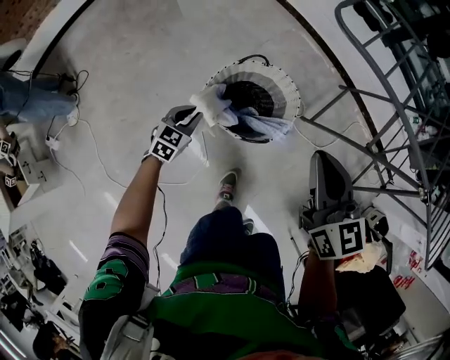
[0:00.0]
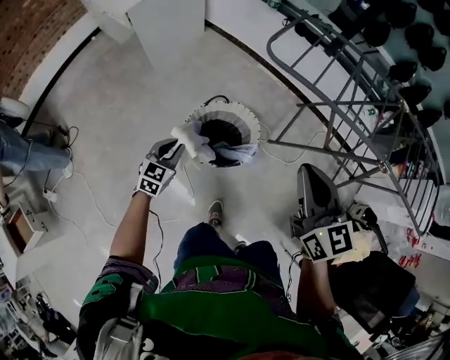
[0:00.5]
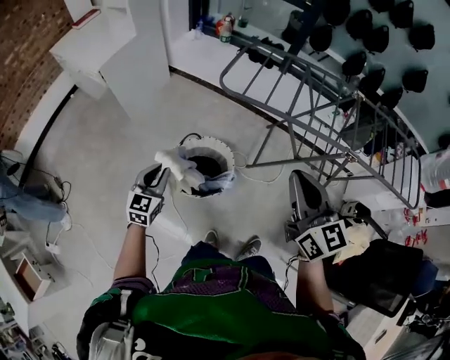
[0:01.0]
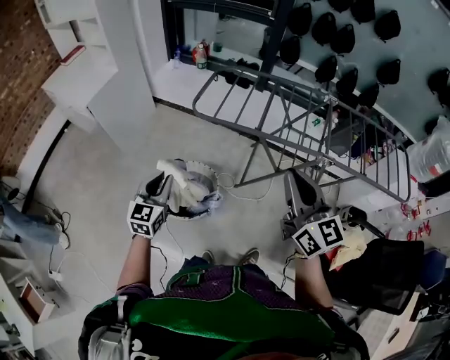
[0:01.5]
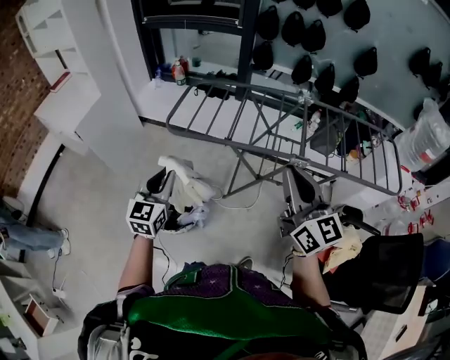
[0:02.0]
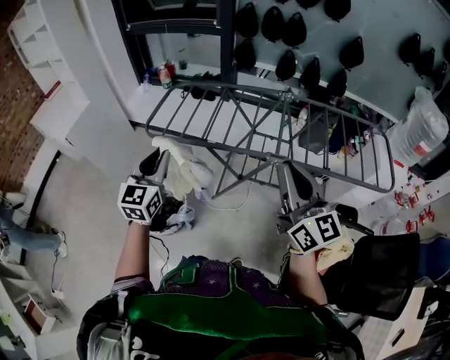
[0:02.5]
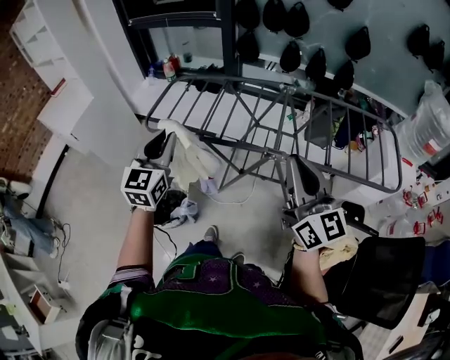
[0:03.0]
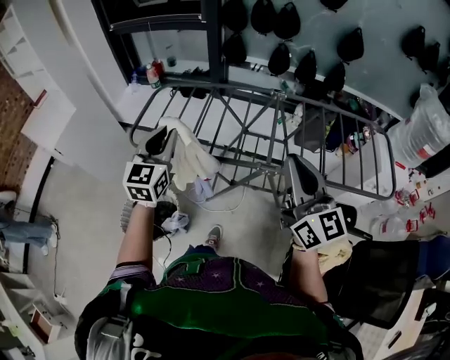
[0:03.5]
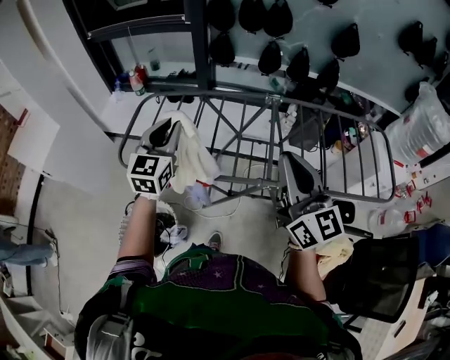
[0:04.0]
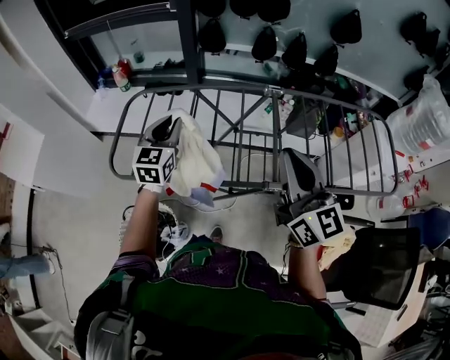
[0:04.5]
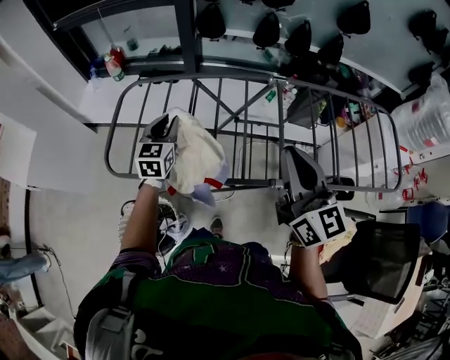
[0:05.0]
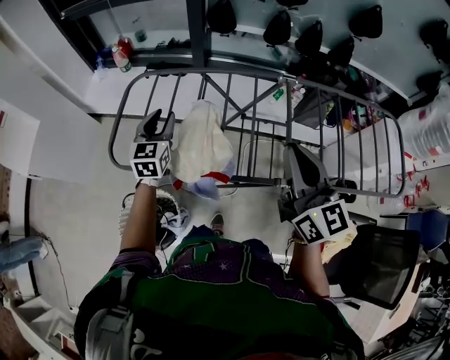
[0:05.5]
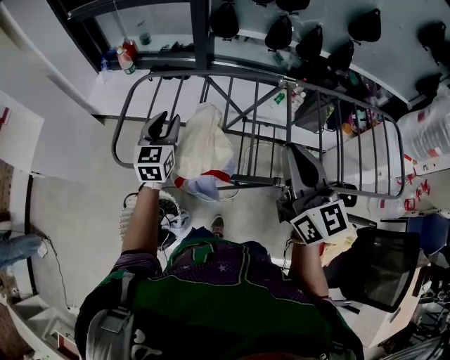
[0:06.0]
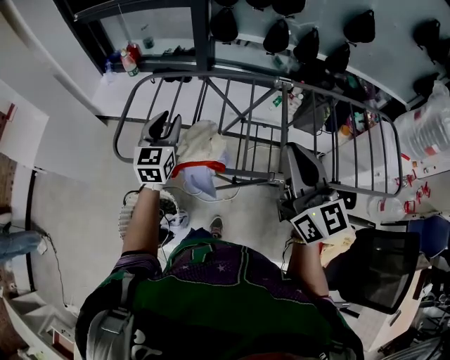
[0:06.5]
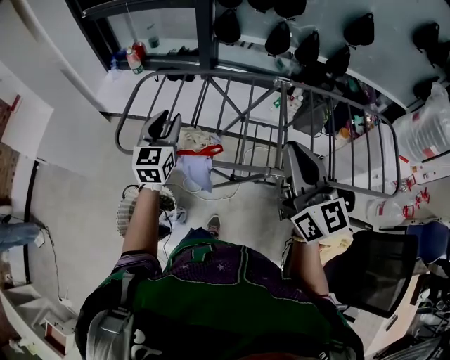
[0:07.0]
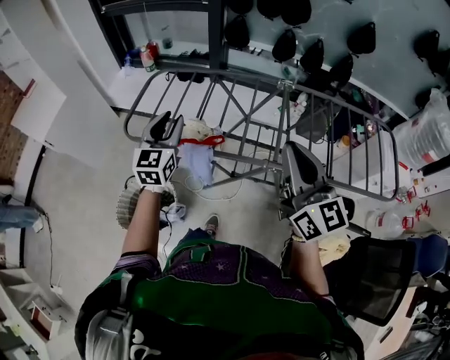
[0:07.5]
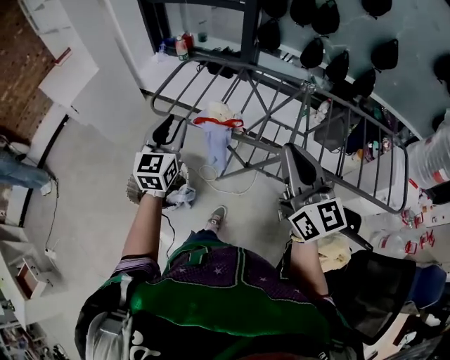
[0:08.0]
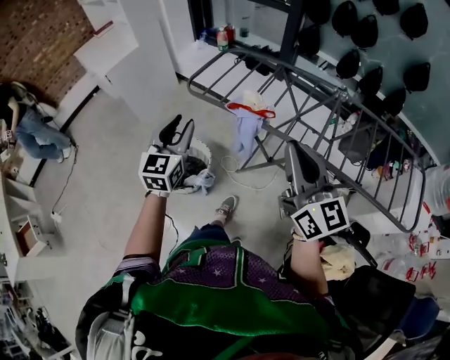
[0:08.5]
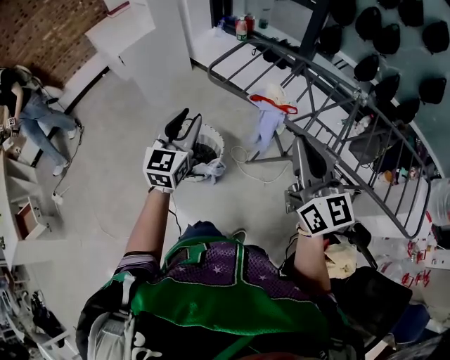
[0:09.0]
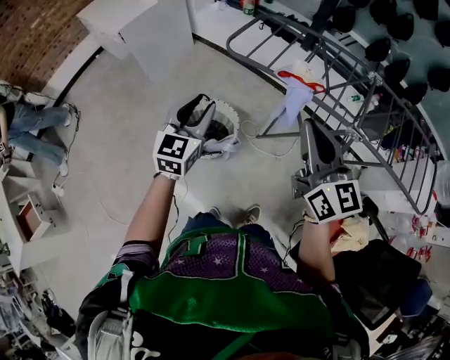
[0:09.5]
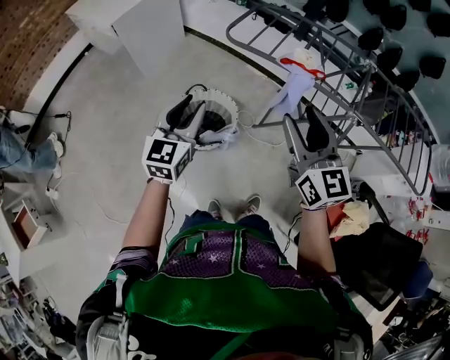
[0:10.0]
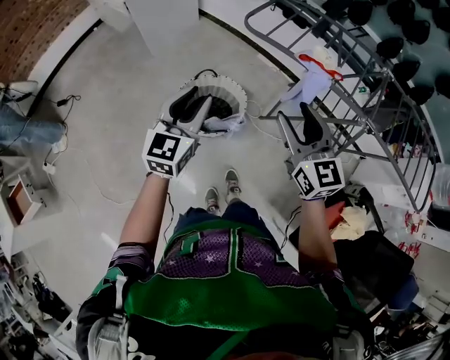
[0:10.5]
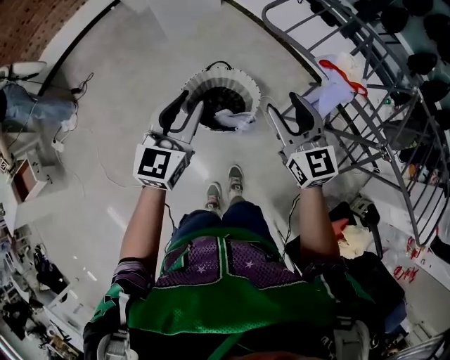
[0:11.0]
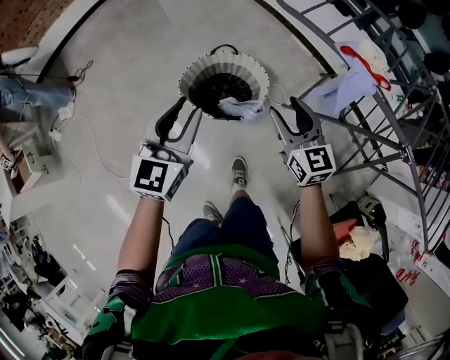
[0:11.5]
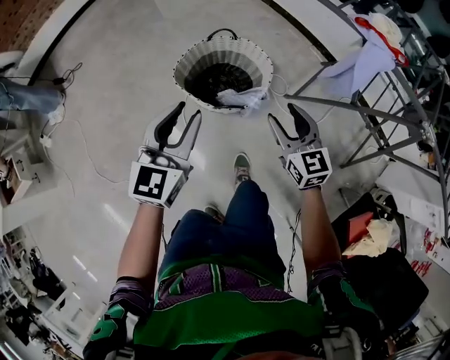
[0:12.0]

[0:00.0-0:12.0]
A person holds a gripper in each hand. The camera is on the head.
0:00.0 to 0:02.0: The right gripper is displaced to the right and upward by about 50 cm, and changes its angle by some 40 degrees; the left gripper goes about 60 cm upward and to the right, and points its fingers approximately 30 degrees further upward.
0:02.0 to 0:04.0: The left gripper goes about 35 cm forward and to the right. The right gripper moves forward and to the right, some 25 cm.
0:04.0 to 0:06.0: The right gripper is displaced forward, downward and to the left by about 10 cm, while the left gripper goes some 20 cm downward, forward and to the left.
0:06.0 to 0:08.0: The right gripper shifts about 20 cm backward; the left gripper travels backward by roughly 30 cm.
0:08.0 to 0:10.0: The right gripper travels to the left by about 30 cm, and opens up; the left gripper heads to the left and backward, covering about 30 cm.
0:10.0 to 0:12.0: The right gripper moves downward, some 40 cm, and swivels approximately 20 degrees, while the left gripper is displaced downward by some 20 cm.

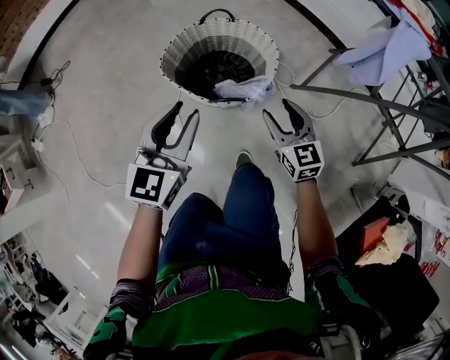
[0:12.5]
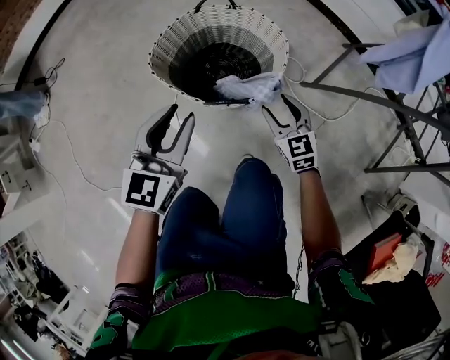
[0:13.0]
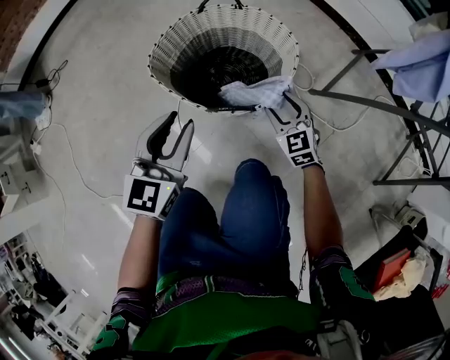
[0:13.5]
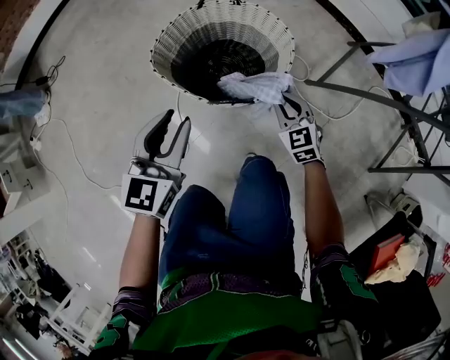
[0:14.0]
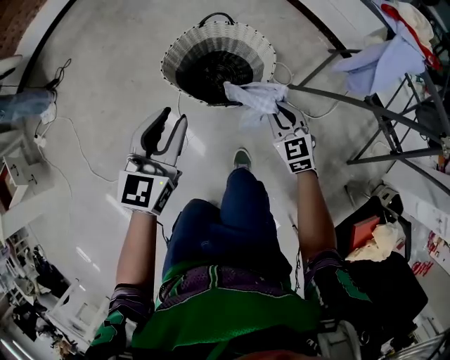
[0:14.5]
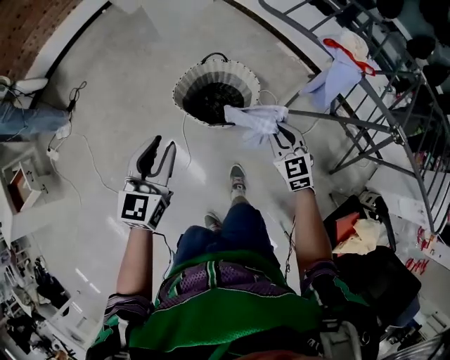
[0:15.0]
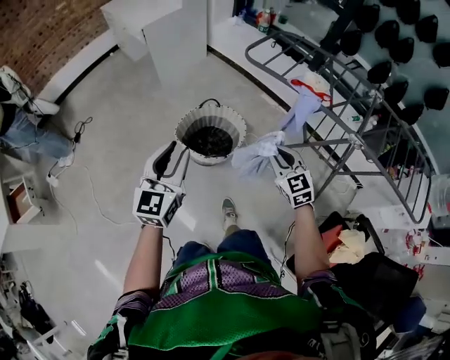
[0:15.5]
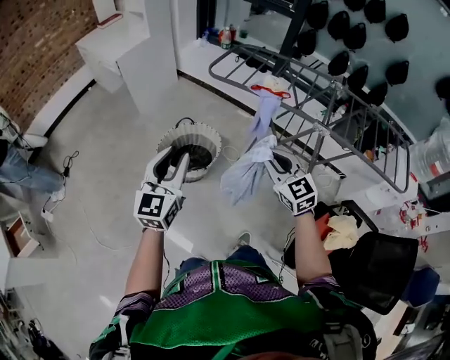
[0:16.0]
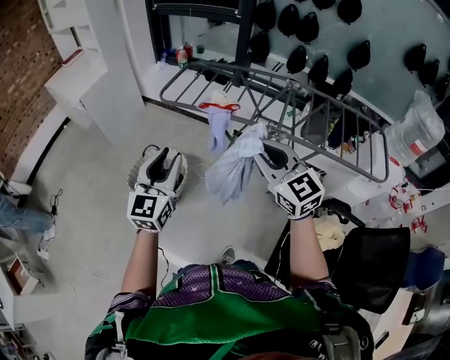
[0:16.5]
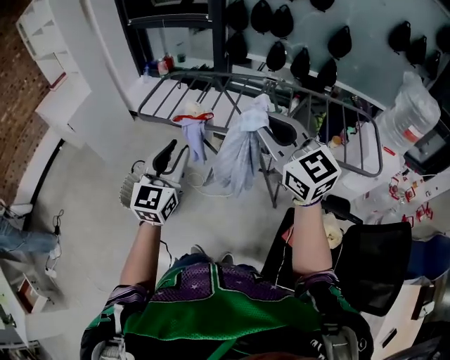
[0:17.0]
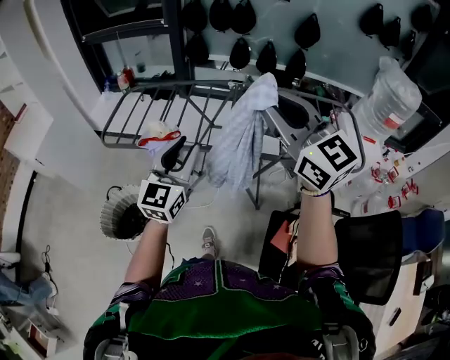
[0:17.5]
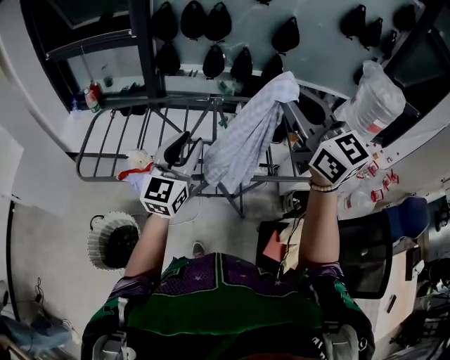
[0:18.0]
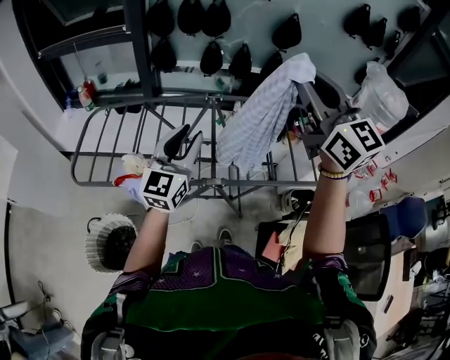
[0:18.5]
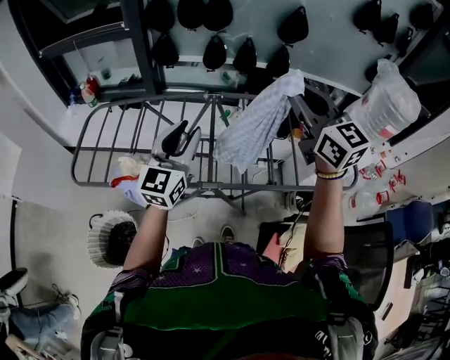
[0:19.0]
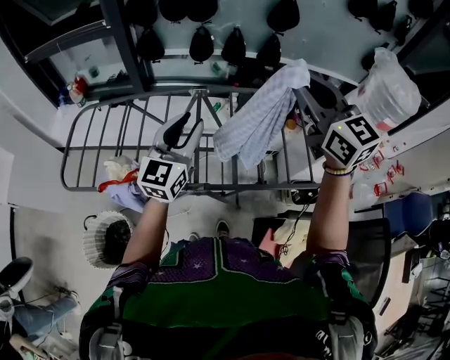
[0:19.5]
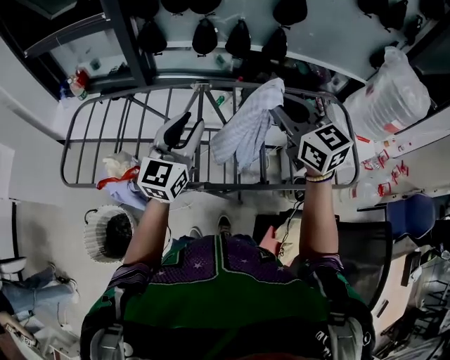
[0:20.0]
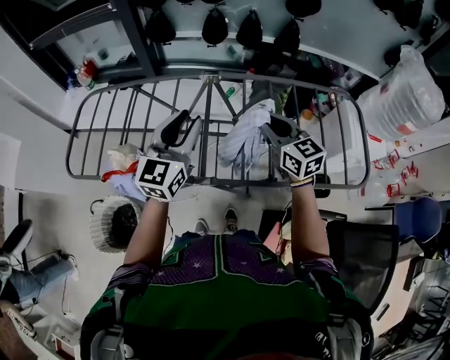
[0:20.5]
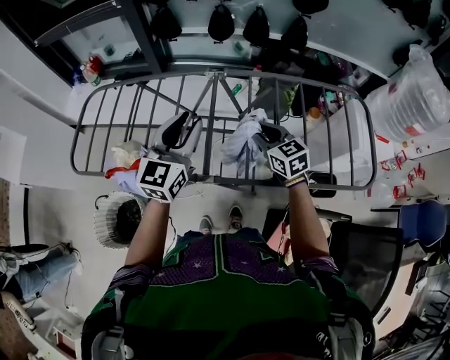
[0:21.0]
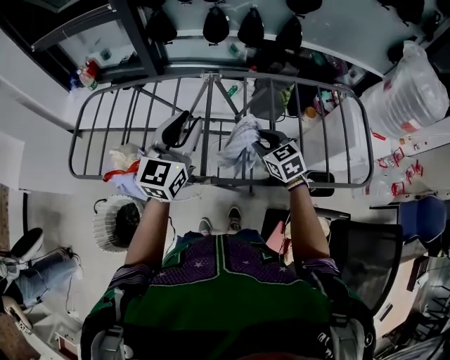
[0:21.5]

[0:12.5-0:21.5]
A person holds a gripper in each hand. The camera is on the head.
0:12.5 to 0:14.5: The right gripper goes downward and returns, approximately 20 cm each way, and closes its fingers, while the left gripper travels downward and back again, about 15 cm each way.
0:14.5 to 0:17.0: Both grippers are carried to the right and backward, approximately 40 cm. The right gripper is displaced upward by approximately 70 cm, and points its fingers some 30 degrees further upward. The left gripper is displaced upward by roughly 40 cm, and changes its angle by some 30 degrees.
0:17.0 to 0:19.5: The pair of grippers is taken forward and to the right, some 40 cm. The right gripper changes its angle by some 20 degrees; the left gripper swivels approximately 30 degrees.
0:19.5 to 0:21.5: The right gripper heads downward, covering some 35 cm, and angles its fingers downward, by about 30 degrees.

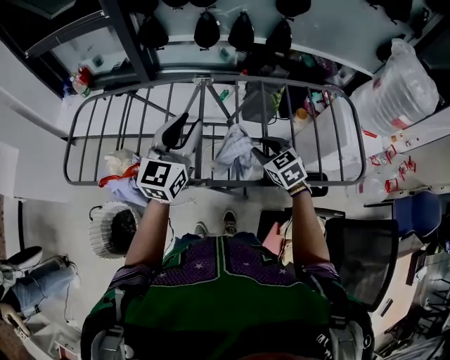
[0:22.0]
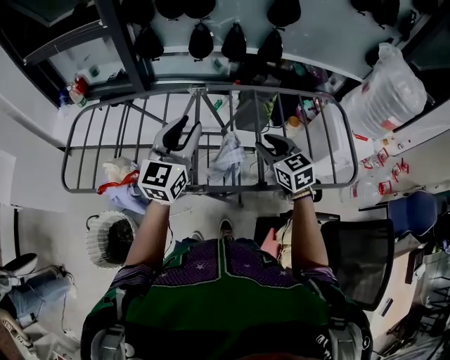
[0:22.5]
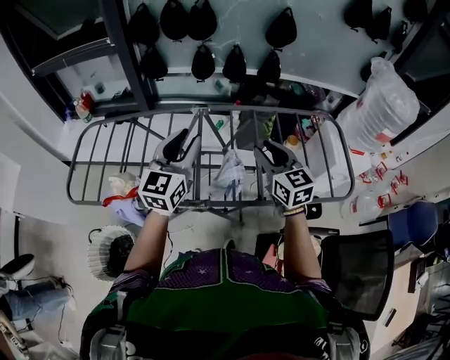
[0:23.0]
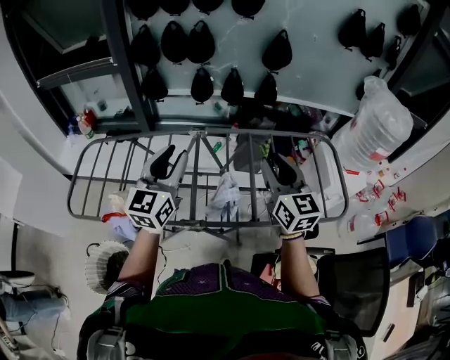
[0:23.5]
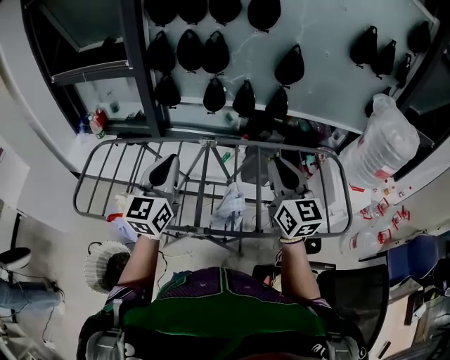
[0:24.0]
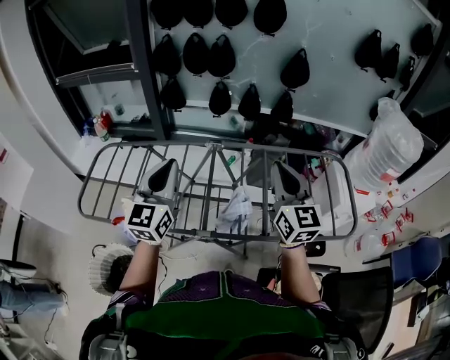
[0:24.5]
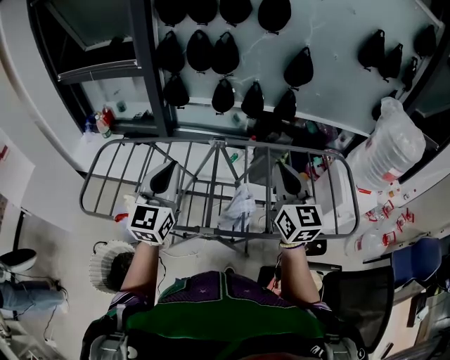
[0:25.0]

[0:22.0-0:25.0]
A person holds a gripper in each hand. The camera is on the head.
0:22.0 to 0:23.5: The left gripper moves upward, about 10 cm, while the right gripper moves upward, some 25 cm, and points its fingers some 40 degrees further upward.
0:23.5 to 0:25.0: The right gripper closes, while the left gripper shifts about 5 cm to the left, and closes.

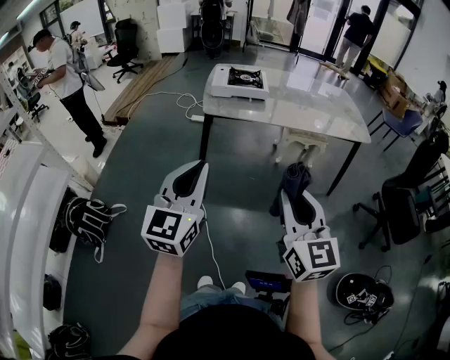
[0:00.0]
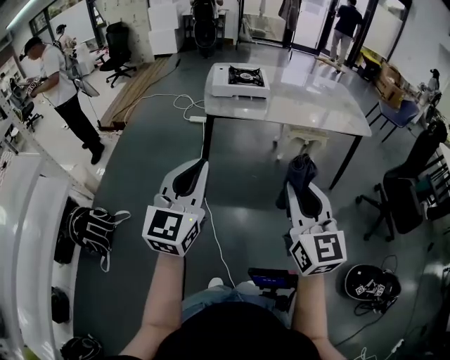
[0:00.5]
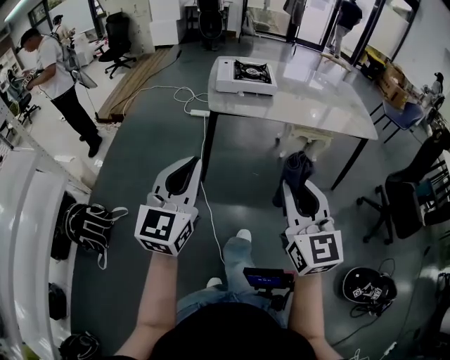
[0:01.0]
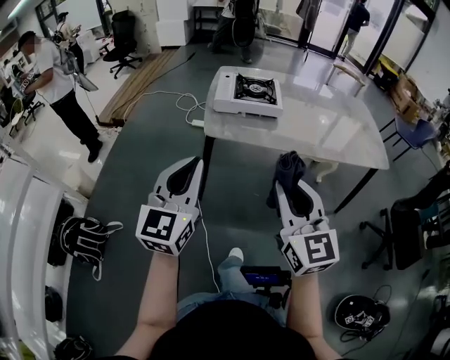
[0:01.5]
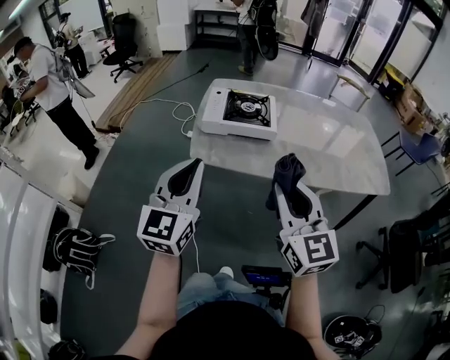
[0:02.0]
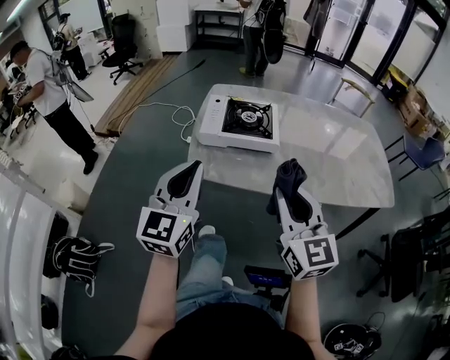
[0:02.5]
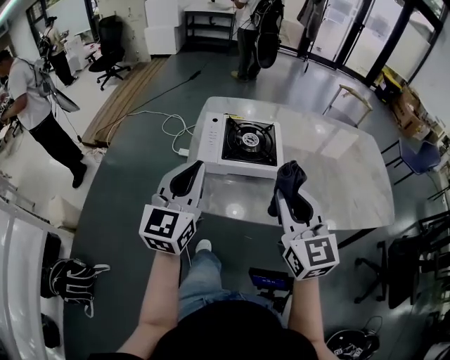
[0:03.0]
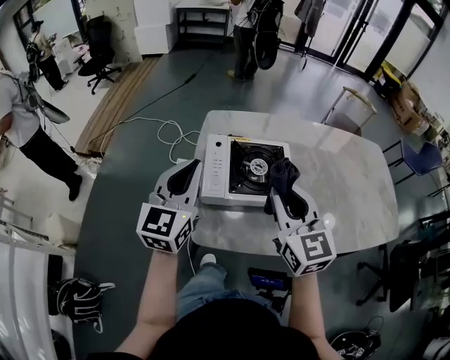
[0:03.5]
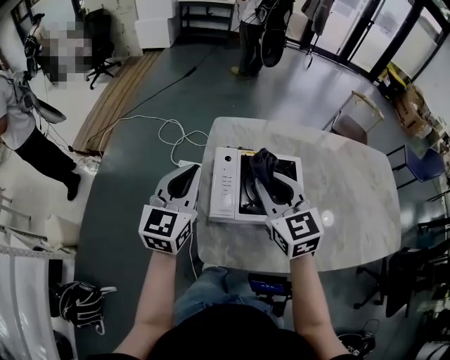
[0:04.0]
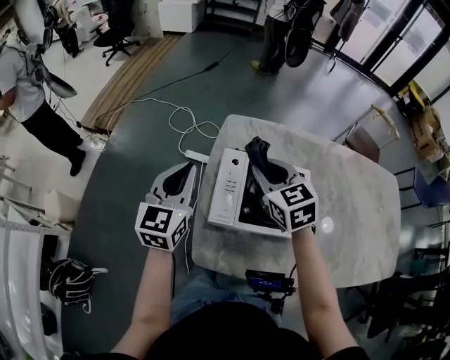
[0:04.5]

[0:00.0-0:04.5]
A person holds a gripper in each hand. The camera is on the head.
0:00.0 to 0:02.0: Both grippers travel together forward, some 35 cm.
0:02.0 to 0:04.5: The two grippers travel together, forward, approximately 50 cm. The right gripper swivels some 30 degrees.
